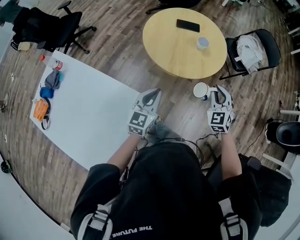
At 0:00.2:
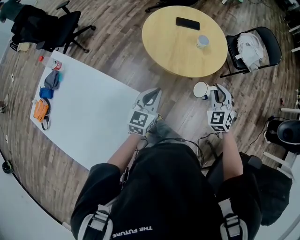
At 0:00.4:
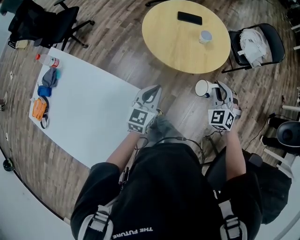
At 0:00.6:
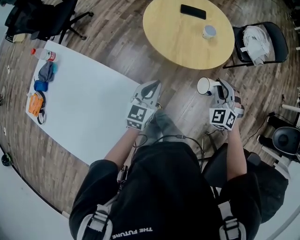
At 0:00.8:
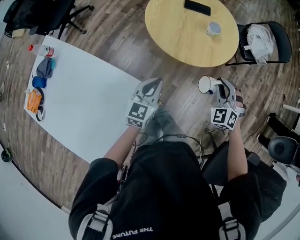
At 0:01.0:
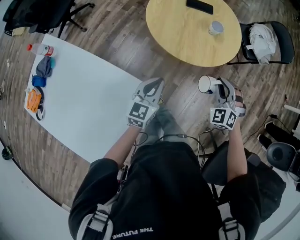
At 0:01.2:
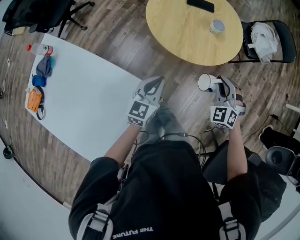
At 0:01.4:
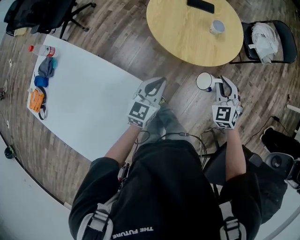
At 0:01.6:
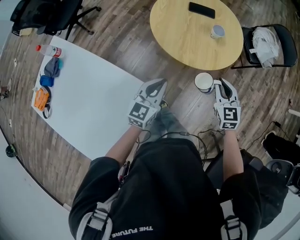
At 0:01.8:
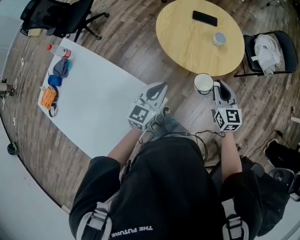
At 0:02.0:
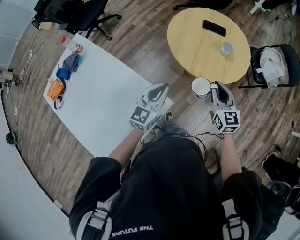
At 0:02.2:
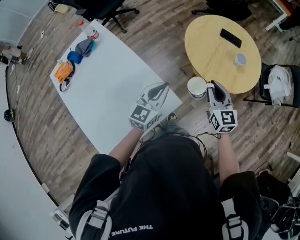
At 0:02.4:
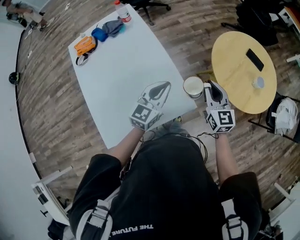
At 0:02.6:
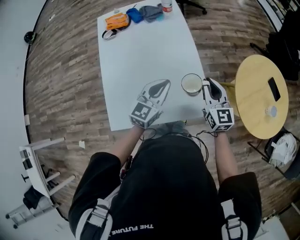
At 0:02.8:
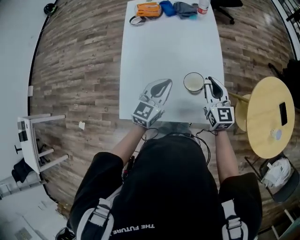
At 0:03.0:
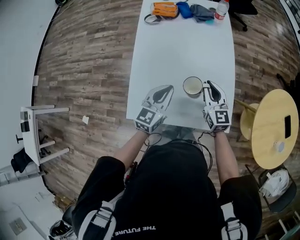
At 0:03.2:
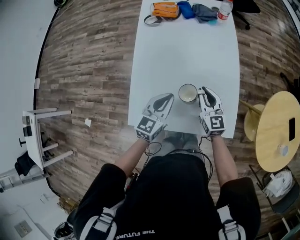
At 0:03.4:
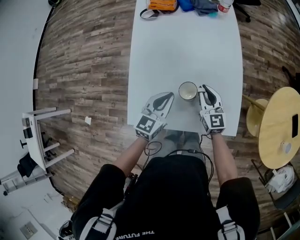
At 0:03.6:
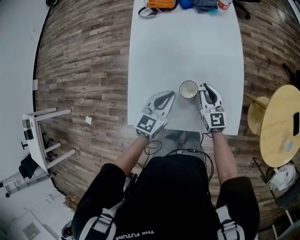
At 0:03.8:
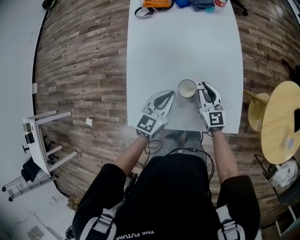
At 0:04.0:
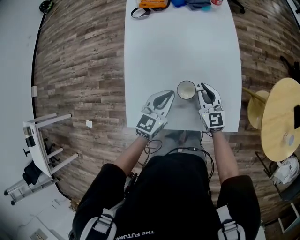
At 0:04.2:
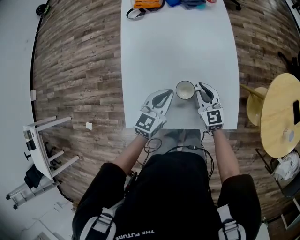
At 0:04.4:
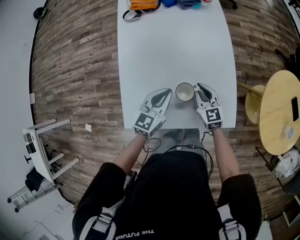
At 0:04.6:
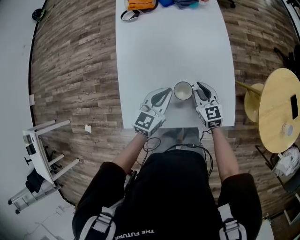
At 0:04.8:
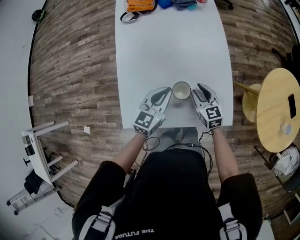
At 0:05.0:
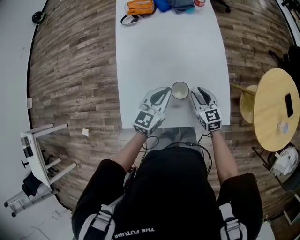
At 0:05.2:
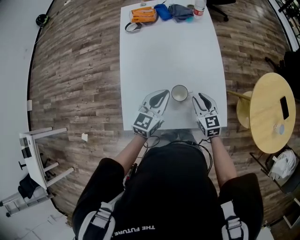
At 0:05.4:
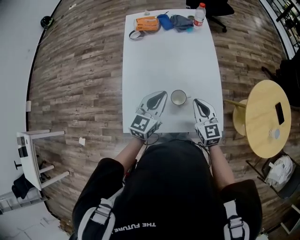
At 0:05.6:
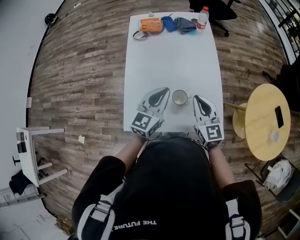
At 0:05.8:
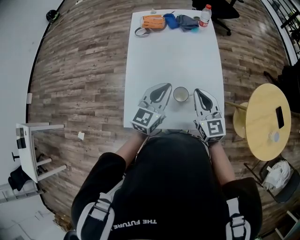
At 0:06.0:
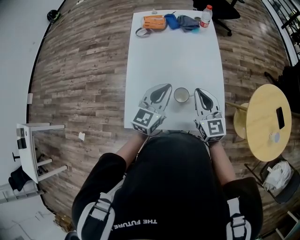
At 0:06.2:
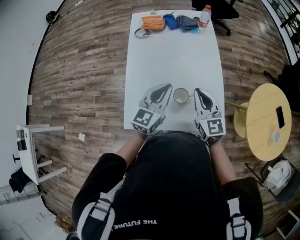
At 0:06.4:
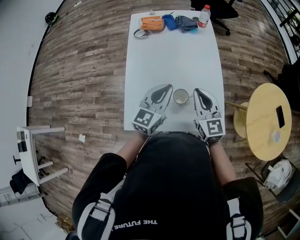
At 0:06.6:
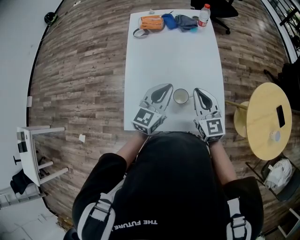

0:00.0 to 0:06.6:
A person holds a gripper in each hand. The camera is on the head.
0:00.0 to 0:01.6: The right gripper changes place by about 5 cm, and turns by roughly 30 degrees.
0:01.6 to 0:03.2: The pair of grippers is taken some 50 cm. The left gripper changes its angle by about 60 degrees, while the right gripper changes its angle by some 70 degrees.
0:03.2 to 0:05.0: The right gripper moves downward, some 5 cm.
0:05.0 to 0:06.6: The left gripper moves upward, approximately 10 cm, while the right gripper heads upward, covering roughly 20 cm, rotates some 20 degrees, and closes.

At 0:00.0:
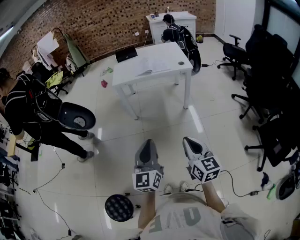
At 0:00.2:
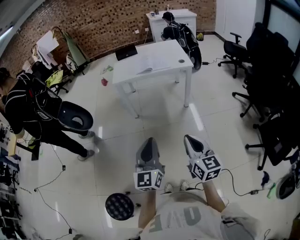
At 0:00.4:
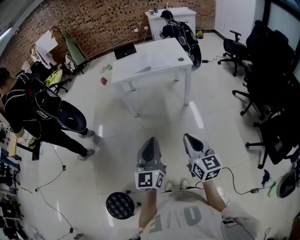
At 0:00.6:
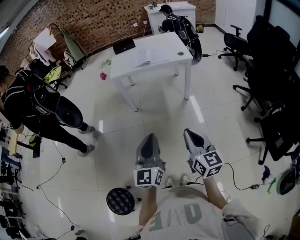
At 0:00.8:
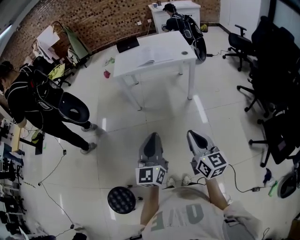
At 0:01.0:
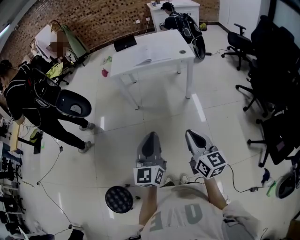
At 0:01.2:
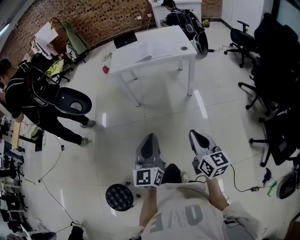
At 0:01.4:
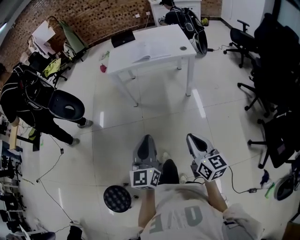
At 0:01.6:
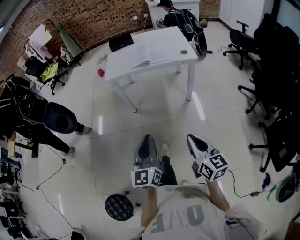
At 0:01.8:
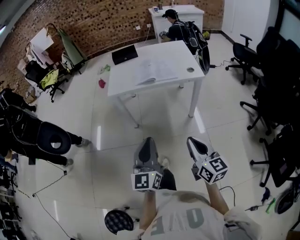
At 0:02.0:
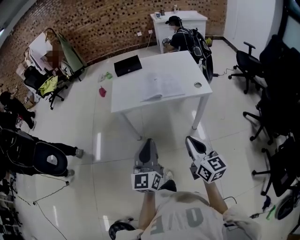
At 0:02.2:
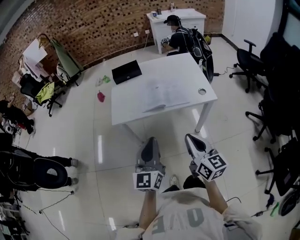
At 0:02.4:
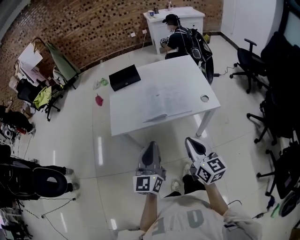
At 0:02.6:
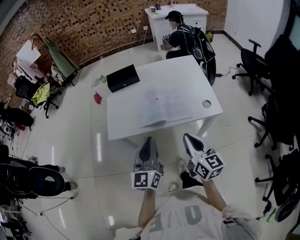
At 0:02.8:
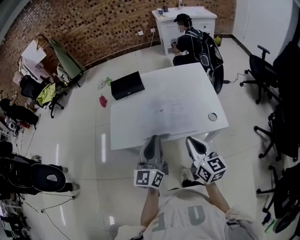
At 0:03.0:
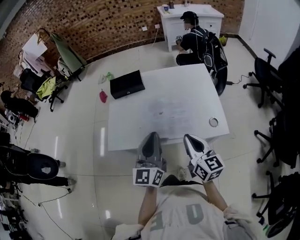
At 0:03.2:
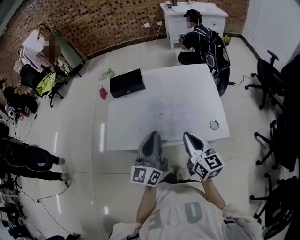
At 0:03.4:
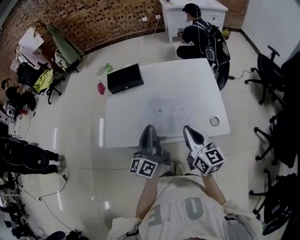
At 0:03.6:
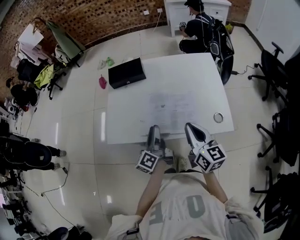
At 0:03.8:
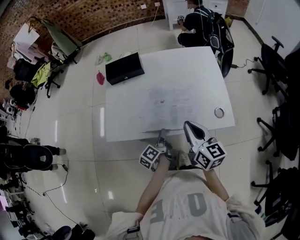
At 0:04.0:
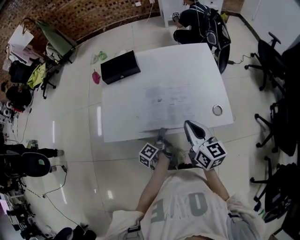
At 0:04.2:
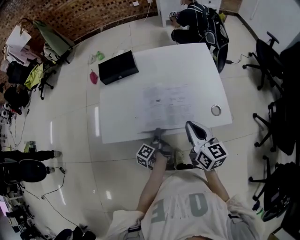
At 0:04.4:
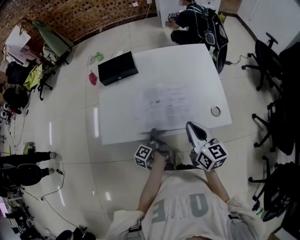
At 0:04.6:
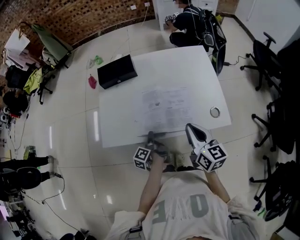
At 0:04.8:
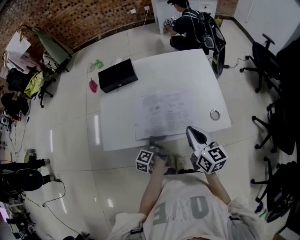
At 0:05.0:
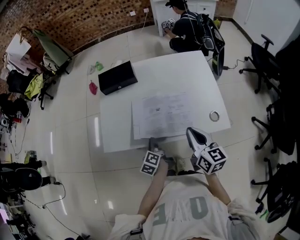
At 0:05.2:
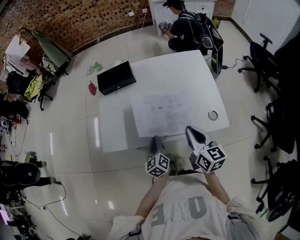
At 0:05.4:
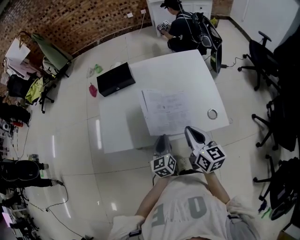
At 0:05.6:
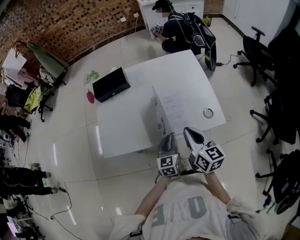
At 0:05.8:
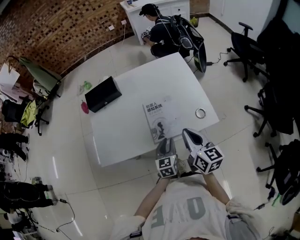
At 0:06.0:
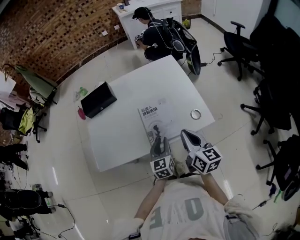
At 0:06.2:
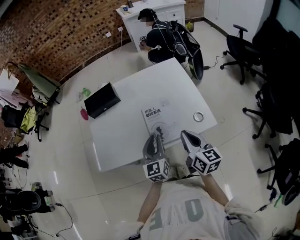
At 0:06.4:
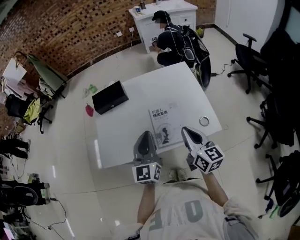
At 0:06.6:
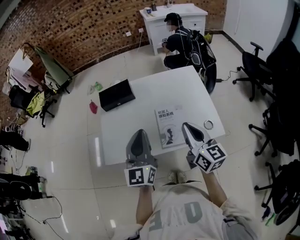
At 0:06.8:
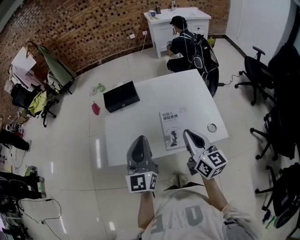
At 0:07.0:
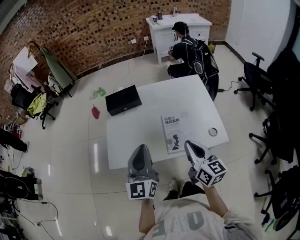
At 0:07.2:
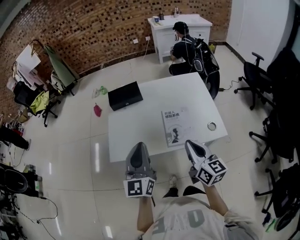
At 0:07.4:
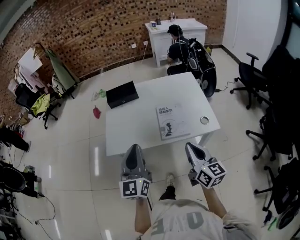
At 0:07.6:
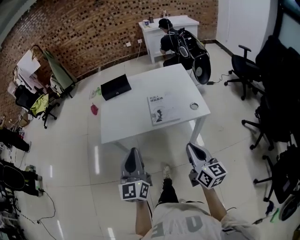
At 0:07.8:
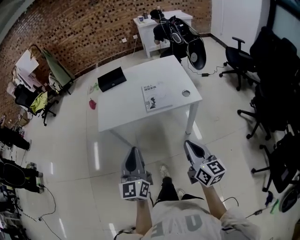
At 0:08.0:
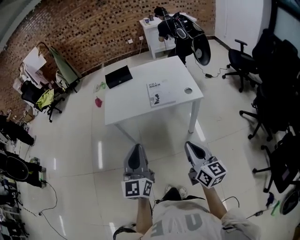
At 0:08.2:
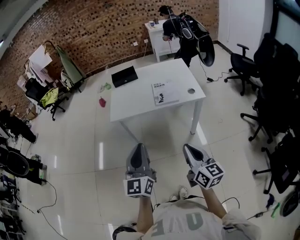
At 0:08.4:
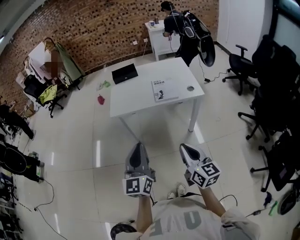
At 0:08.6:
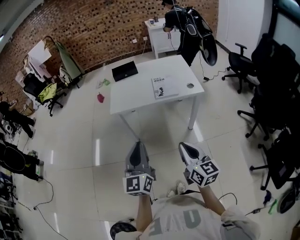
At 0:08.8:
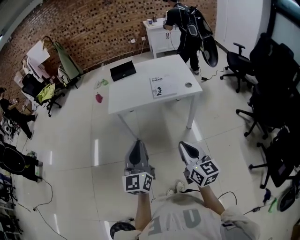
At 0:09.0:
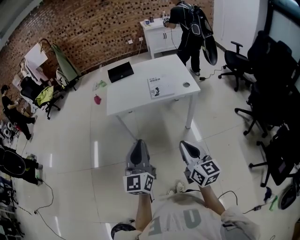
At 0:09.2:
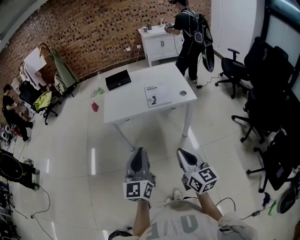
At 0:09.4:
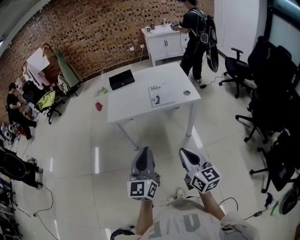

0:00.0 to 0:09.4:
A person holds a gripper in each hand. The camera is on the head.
0:00.0 to 0:01.6: The two grippers go some 10 cm forward.
0:01.6 to 0:03.2: Both grippers are carried forward, some 60 cm.
0:03.2 to 0:04.8: The right gripper moves about 5 cm, while the left gripper travels downward by some 30 cm, rotates around the line of its fingers by roughly 60 degrees, counterclockwise from behind, and opens and closes again.
0:04.8 to 0:06.2: The left gripper shifts roughly 20 cm upward and to the right, and twists roughly 80 degrees clockwise, seen from behind. The right gripper is displaced to the right by approximately 5 cm.
0:06.2 to 0:07.8: The right gripper heads backward, covering roughly 30 cm, while the left gripper heads backward and upward, covering approximately 35 cm.
0:07.8 to 0:09.4: The right gripper shifts some 15 cm backward and to the left, while the left gripper moves backward, some 15 cm.

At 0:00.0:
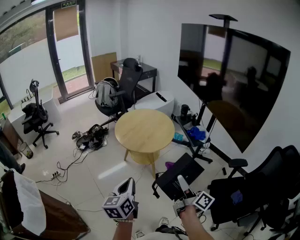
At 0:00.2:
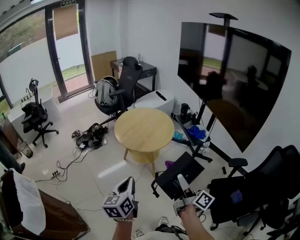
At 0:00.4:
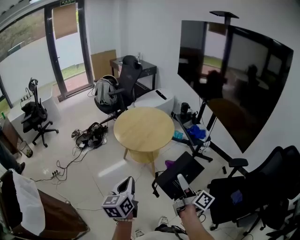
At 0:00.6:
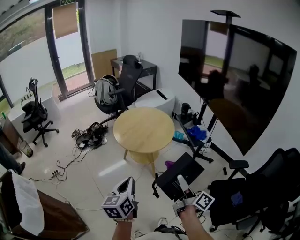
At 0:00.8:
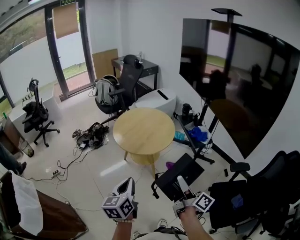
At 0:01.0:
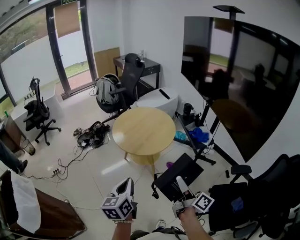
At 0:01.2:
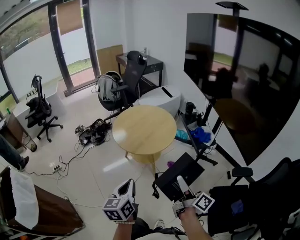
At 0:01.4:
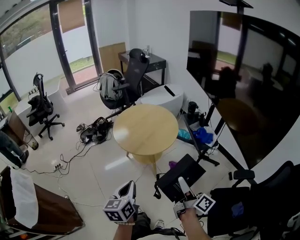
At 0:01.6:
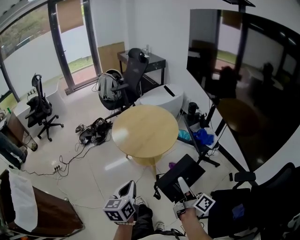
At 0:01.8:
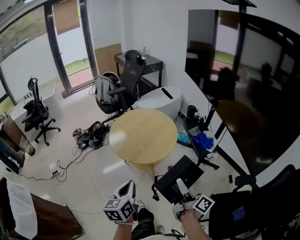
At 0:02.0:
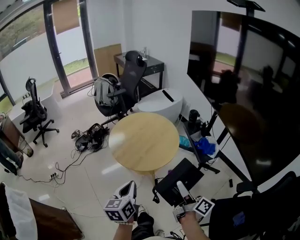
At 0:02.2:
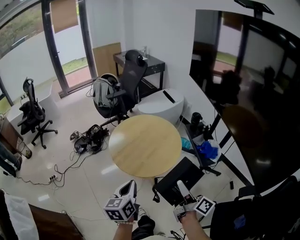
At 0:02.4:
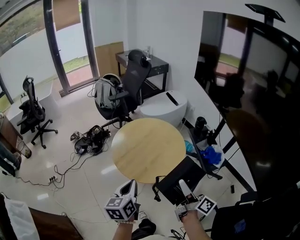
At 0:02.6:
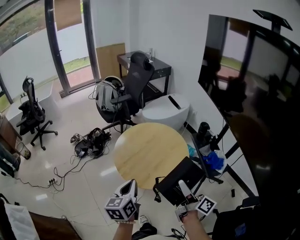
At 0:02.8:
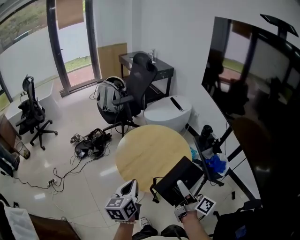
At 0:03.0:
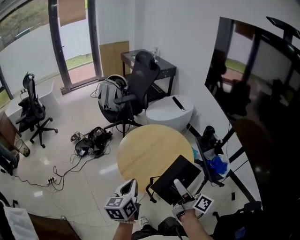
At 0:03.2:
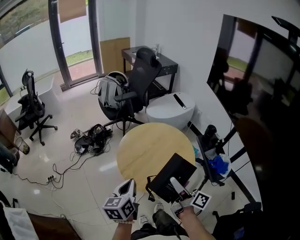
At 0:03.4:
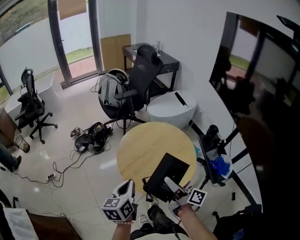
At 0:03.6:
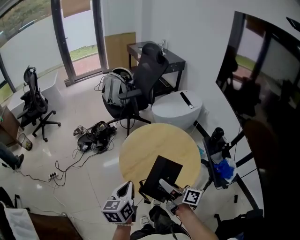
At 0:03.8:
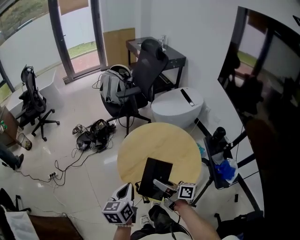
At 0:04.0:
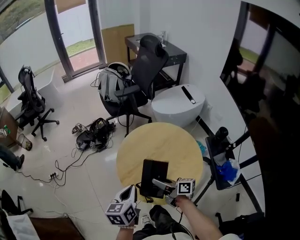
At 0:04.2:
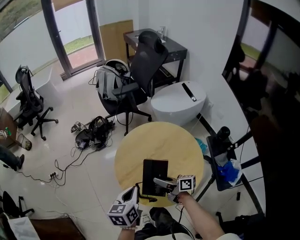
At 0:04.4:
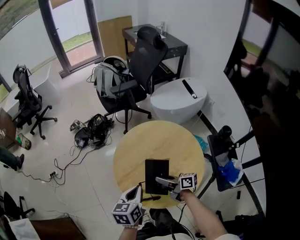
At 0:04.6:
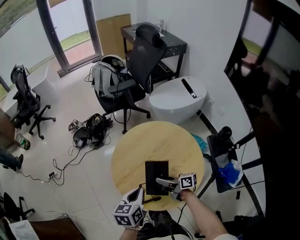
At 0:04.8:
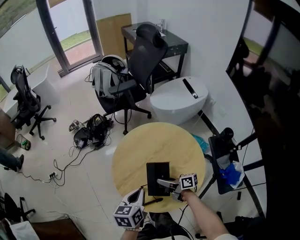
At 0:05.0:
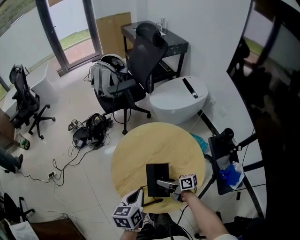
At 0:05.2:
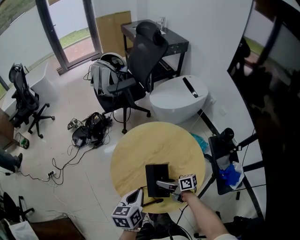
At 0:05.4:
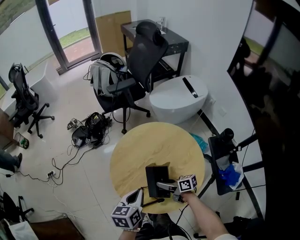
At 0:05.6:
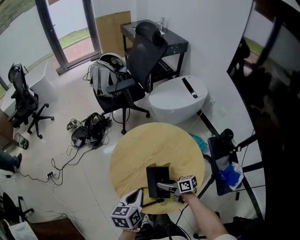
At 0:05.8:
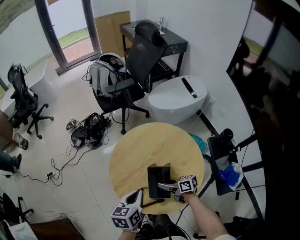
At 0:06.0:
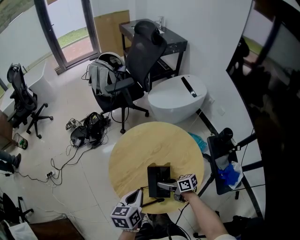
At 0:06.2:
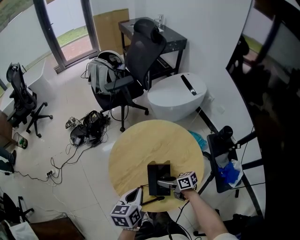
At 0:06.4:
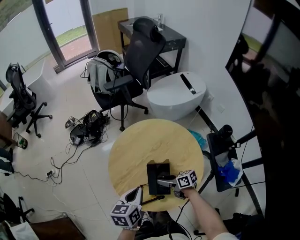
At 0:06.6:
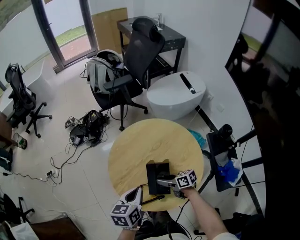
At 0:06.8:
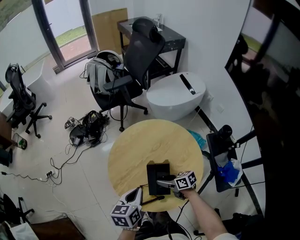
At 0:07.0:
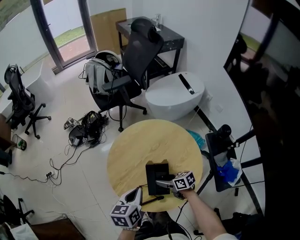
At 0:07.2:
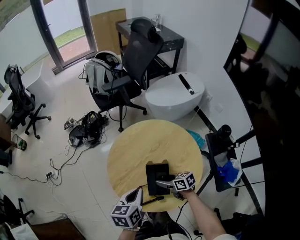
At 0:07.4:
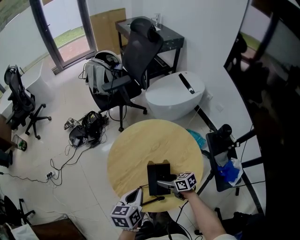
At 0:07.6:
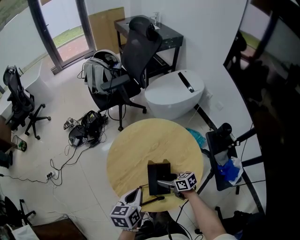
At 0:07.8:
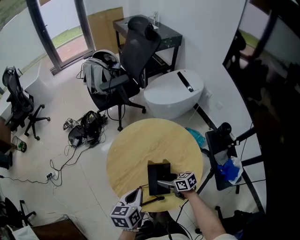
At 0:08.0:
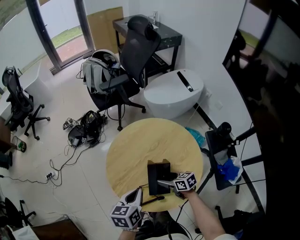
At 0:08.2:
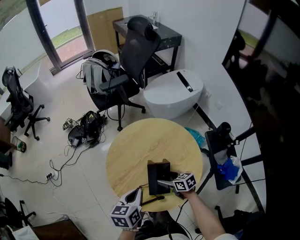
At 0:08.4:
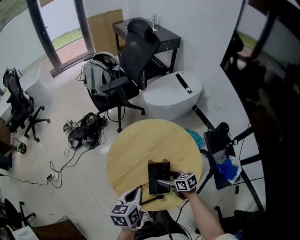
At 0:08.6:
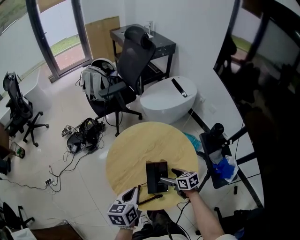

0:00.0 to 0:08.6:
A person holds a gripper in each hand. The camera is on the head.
0:00.0 to 0:01.4: The right gripper heads forward and to the right, covering roughly 10 cm. Meanwhile the left gripper shifts approximately 10 cm to the right and forward.
0:01.4 to 0:02.8: The two grippers go approximately 25 cm forward.
0:02.8 to 0:04.4: The left gripper shifts some 15 cm downward and forward, while the right gripper moves downward and forward, approximately 30 cm, and changes its angle by approximately 50 degrees.
0:04.4 to 0:05.8: The right gripper moves downward, approximately 5 cm.
0:05.8 to 0:07.2: The grippers move only a little.
0:07.2 to 0:08.6: The right gripper is displaced to the right by roughly 5 cm, and opens up.
